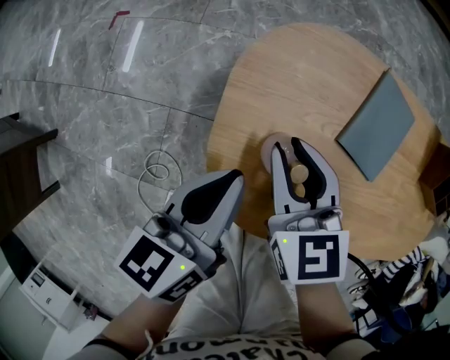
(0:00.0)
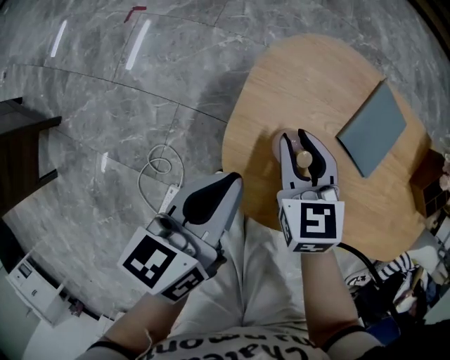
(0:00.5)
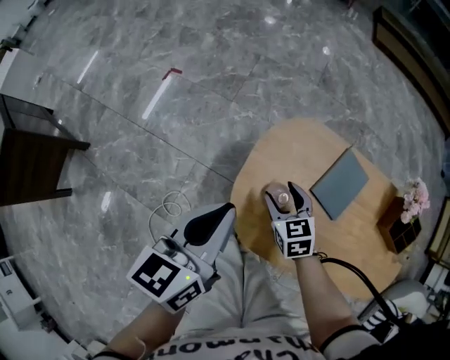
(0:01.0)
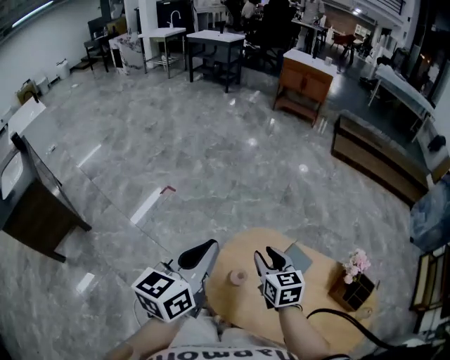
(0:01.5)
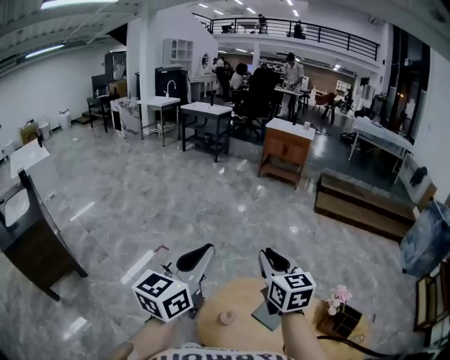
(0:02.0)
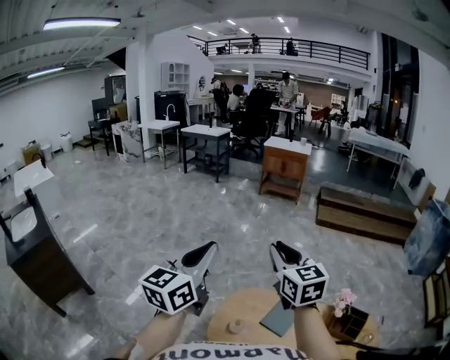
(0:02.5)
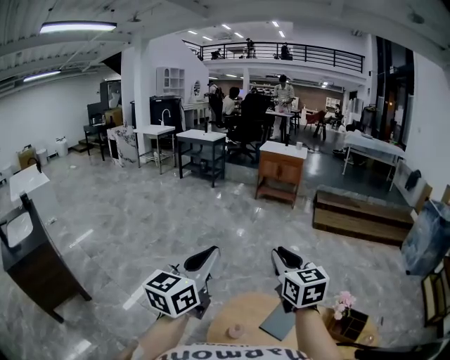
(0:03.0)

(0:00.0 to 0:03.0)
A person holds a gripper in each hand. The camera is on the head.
0:00.0 - 0:01.5: The left gripper moves upward, about 35 cm, and rotates roughly 30 degrees, while the right gripper is displaced upward by some 25 cm, and opens, then closes again.
0:01.5 - 0:03.0: The left gripper travels upward by approximately 20 cm, and changes its angle by about 20 degrees; the right gripper travels upward by about 30 cm, and turns by about 30 degrees.

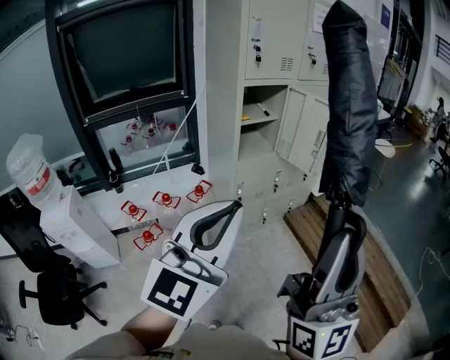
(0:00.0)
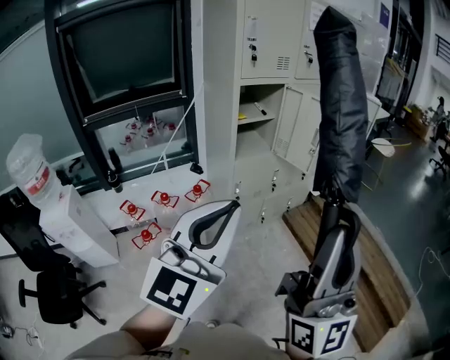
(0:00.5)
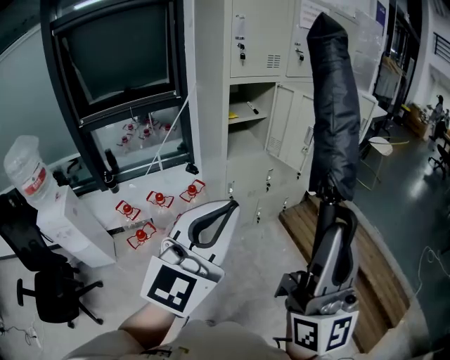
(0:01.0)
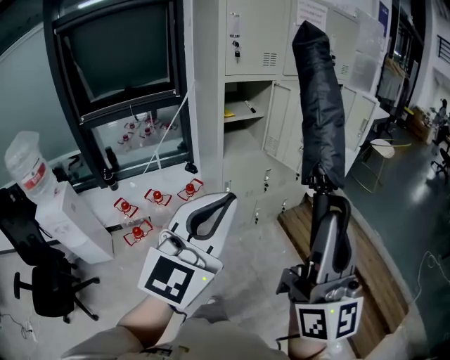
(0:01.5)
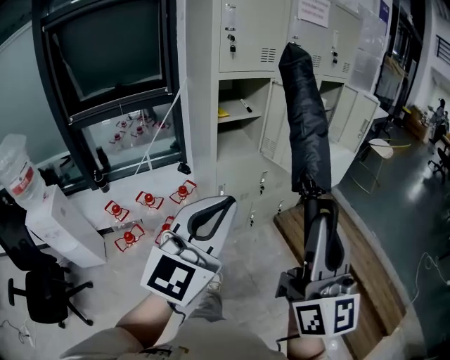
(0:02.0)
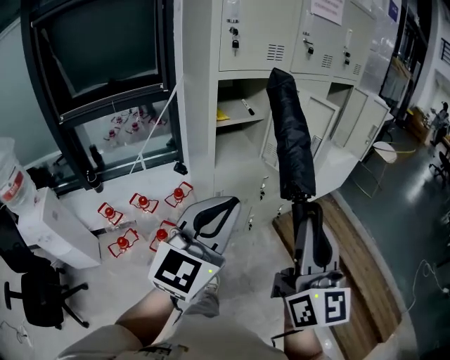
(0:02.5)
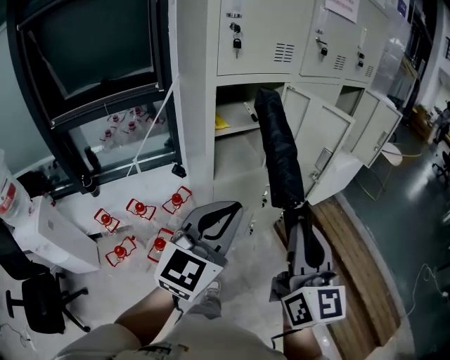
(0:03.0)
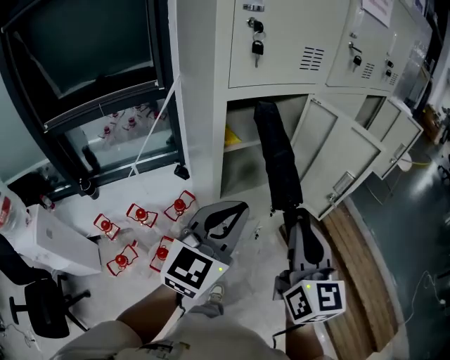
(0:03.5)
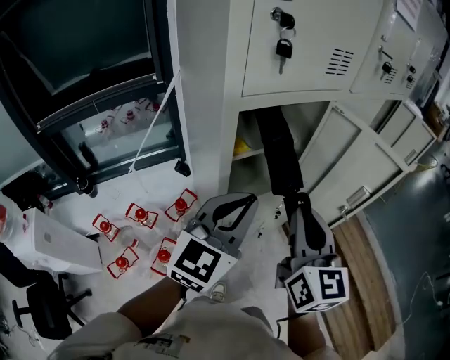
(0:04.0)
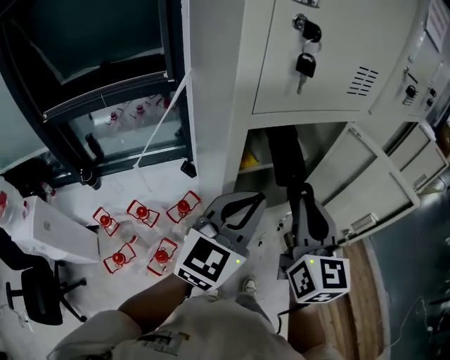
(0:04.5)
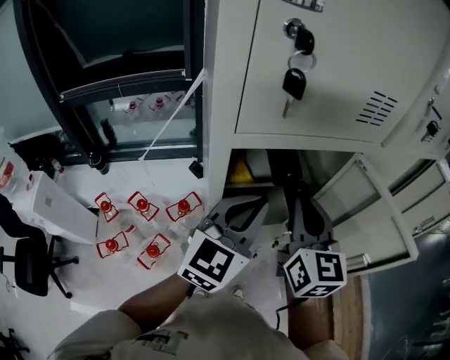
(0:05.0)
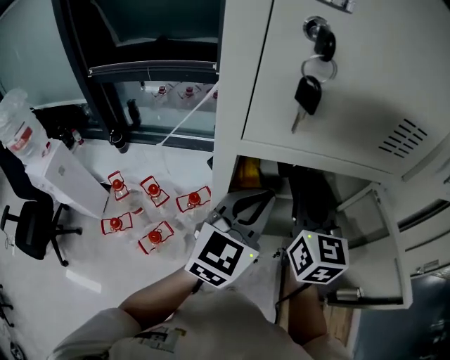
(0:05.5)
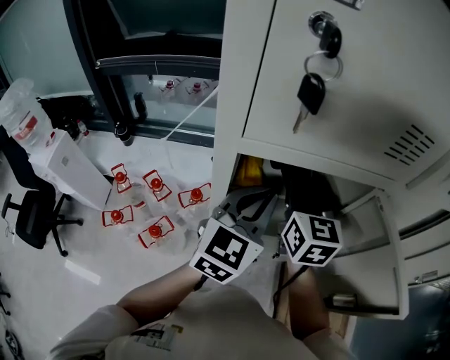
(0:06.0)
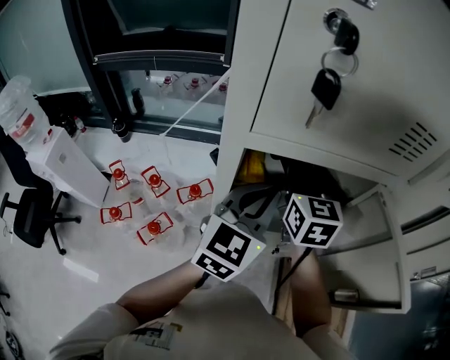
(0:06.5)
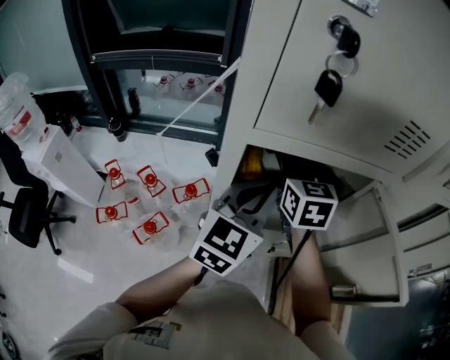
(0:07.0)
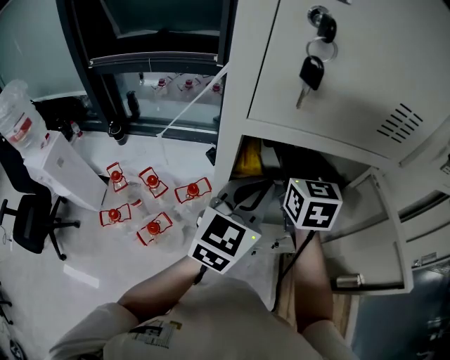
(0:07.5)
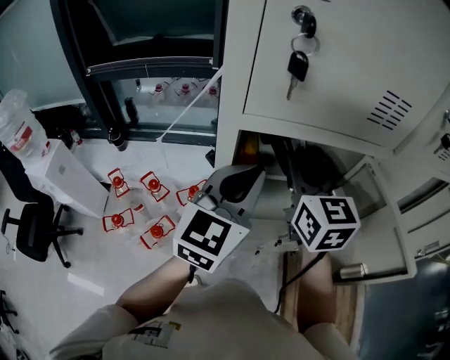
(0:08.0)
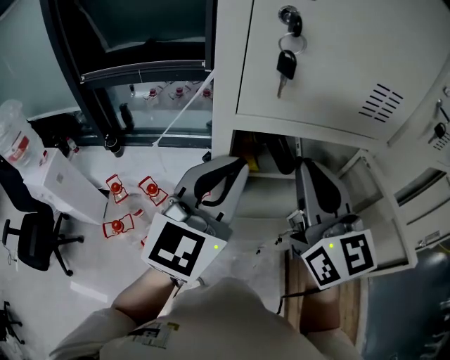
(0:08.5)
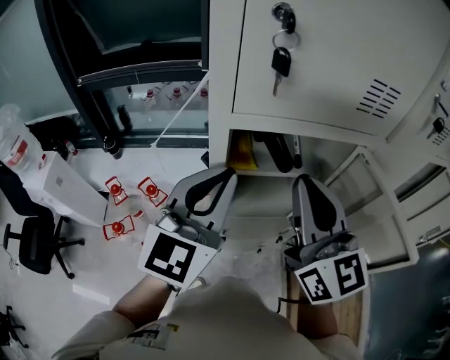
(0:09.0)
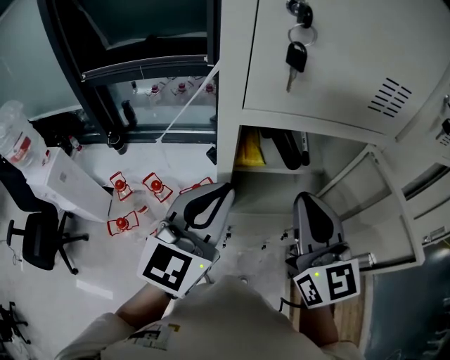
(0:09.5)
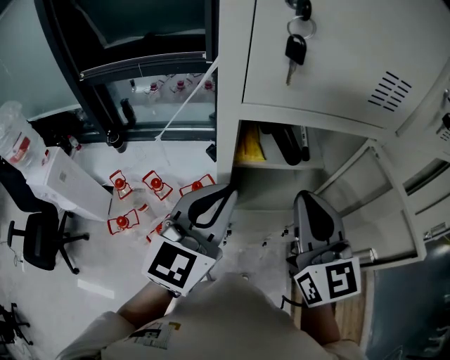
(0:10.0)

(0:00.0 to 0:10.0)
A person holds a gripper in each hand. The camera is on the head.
0:00.0 - 0:02.0: The right gripper is displaced forward, downward and to the right by roughly 15 cm, while the left gripper is displaced forward, to the right and downward by roughly 15 cm.
0:02.0 - 0:04.0: The pair of grippers is taken forward, about 40 cm. The right gripper swivels roughly 30 degrees.
0:04.0 - 0:06.0: The left gripper moves roughly 15 cm, and turns by about 30 degrees, while the right gripper changes place by roughly 25 cm, and turns by approximately 30 degrees.
0:06.0 - 0:08.0: The right gripper is displaced upward by roughly 5 cm; the left gripper moves approximately 5 cm.
0:08.0 - 0:10.0: The right gripper moves backward, some 10 cm. The left gripper shifts about 5 cm backward.

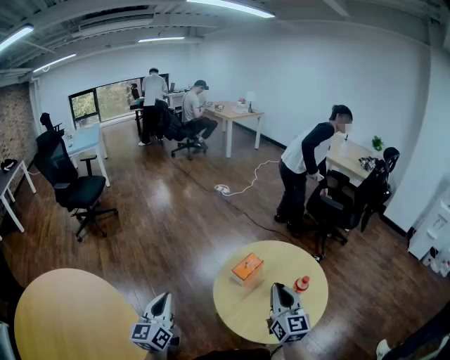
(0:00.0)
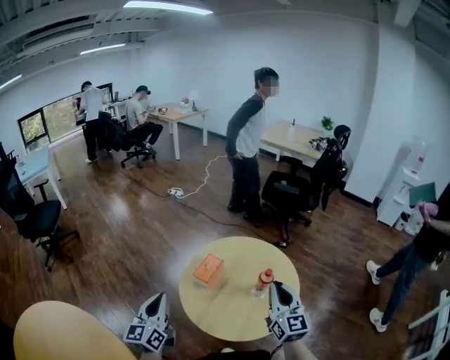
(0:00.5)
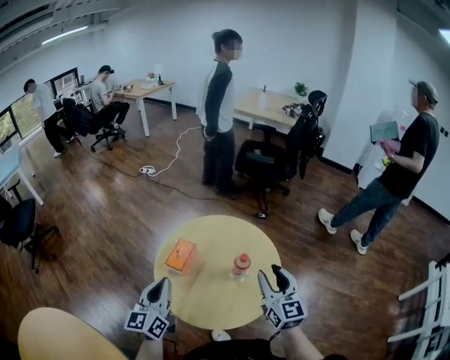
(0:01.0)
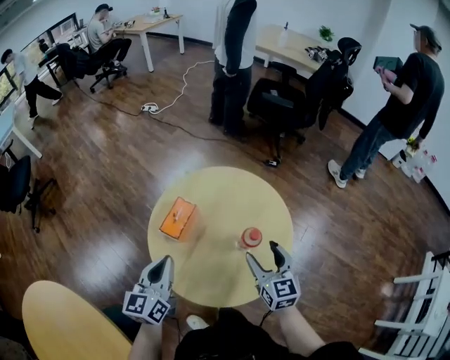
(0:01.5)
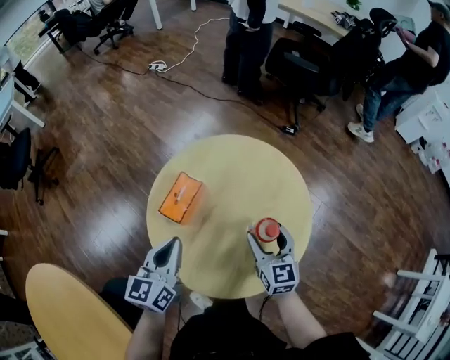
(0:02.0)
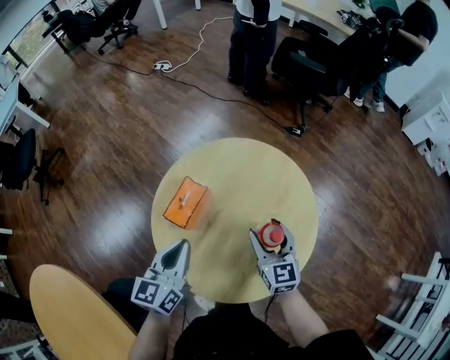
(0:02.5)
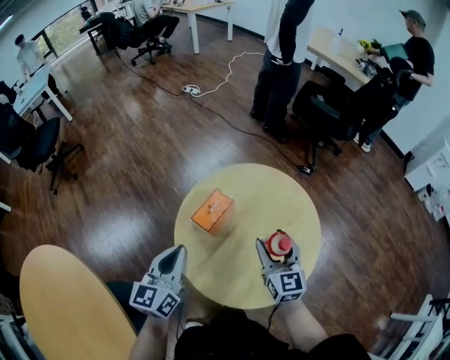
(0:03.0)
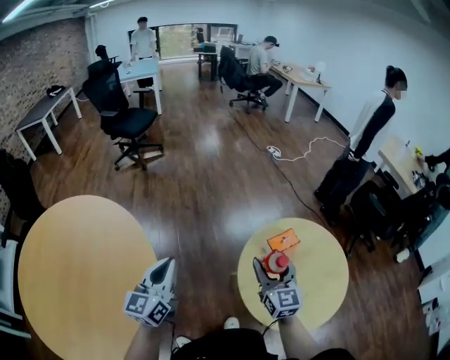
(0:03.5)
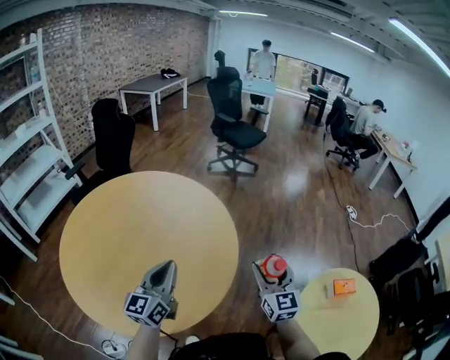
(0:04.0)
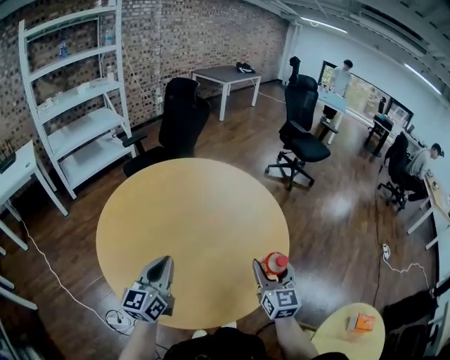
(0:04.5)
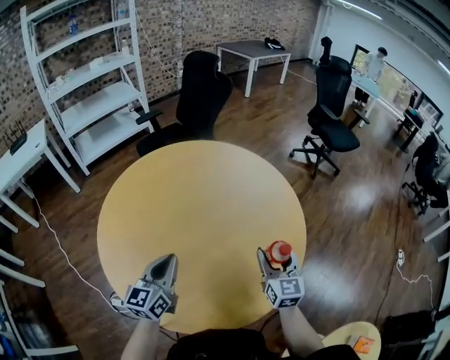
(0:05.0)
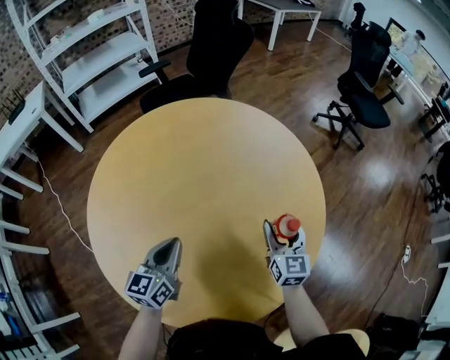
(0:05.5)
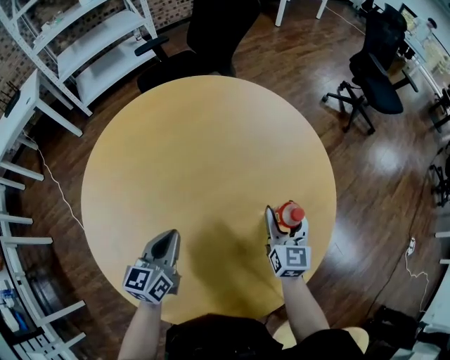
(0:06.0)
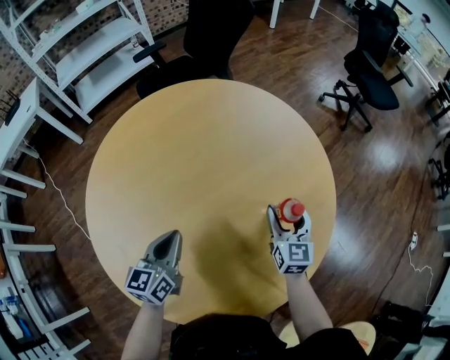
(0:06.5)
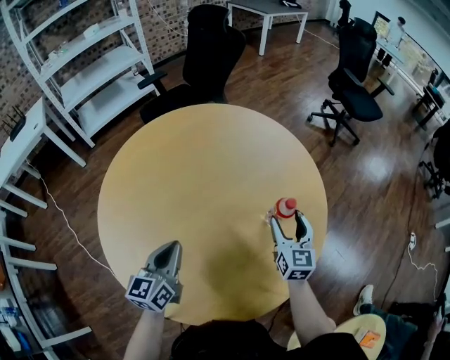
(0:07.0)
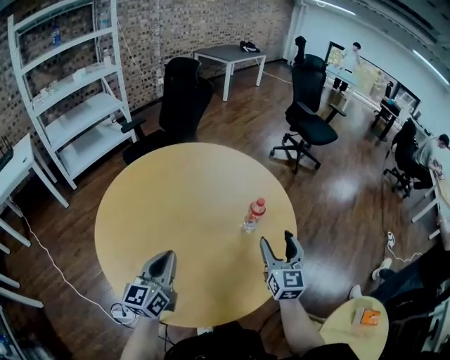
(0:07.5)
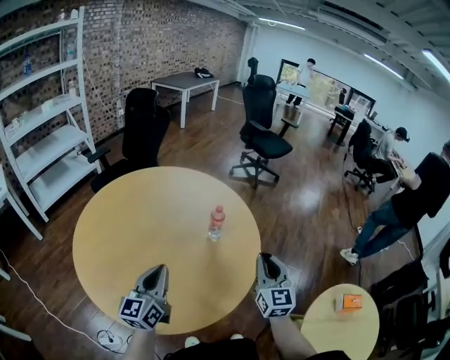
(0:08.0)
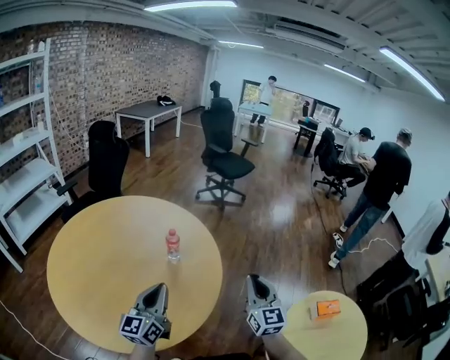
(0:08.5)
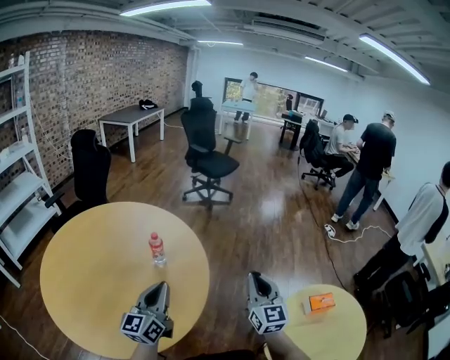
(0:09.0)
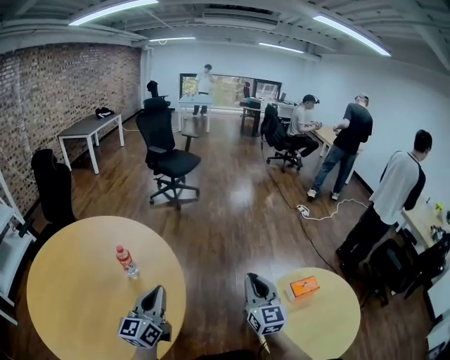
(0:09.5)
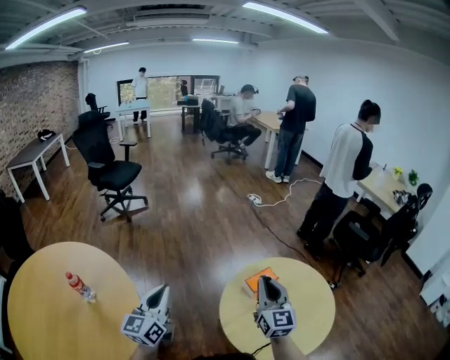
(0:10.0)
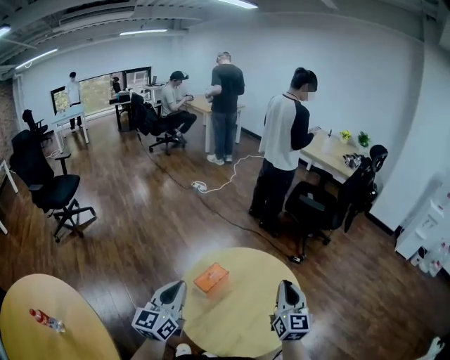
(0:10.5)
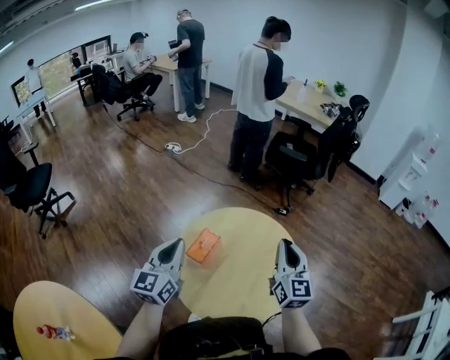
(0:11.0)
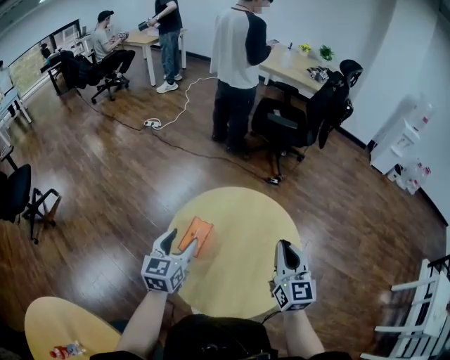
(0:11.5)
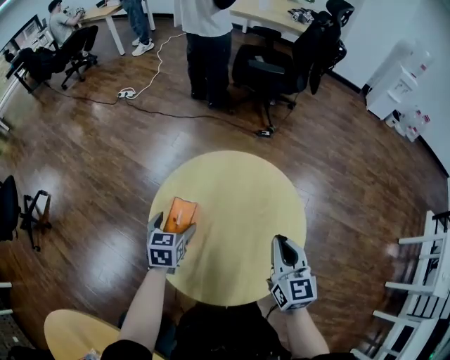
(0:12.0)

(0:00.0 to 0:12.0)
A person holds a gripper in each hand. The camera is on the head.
0:00.0 - 0:02.0: The left gripper heads to the right, forward and downward, covering some 30 cm, and changes its angle by approximately 30 degrees; the right gripper is displaced downward and to the right by approximately 25 cm, turns by roughly 30 degrees, and opens up.
0:02.0 - 0:04.0: The two grippers travel together, some 60 cm. The left gripper rotates approximately 70 degrees. The right gripper changes its angle by roughly 70 degrees.
0:04.0 - 0:06.0: The right gripper moves roughly 40 cm, and swivels some 30 degrees. Meanwhile the left gripper ends up some 25 cm from where it was, and changes its angle by some 40 degrees.
0:06.0 - 0:08.0: The left gripper travels upward and backward by roughly 20 cm, and swivels approximately 30 degrees; the right gripper is displaced backward and upward by about 30 cm, changes its angle by about 30 degrees, and closes up.
0:08.0 - 0:10.0: The pair of grippers is taken about 50 cm. The left gripper changes its angle by about 50 degrees; the right gripper changes its angle by approximately 50 degrees.
0:10.0 - 0:12.0: The left gripper ends up roughly 50 cm from where it was, tilts its fingers approximately 50 degrees downward, and opens; the right gripper changes place by some 25 cm, and turns by approximately 50 degrees.

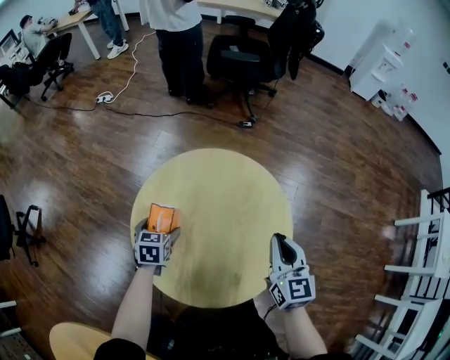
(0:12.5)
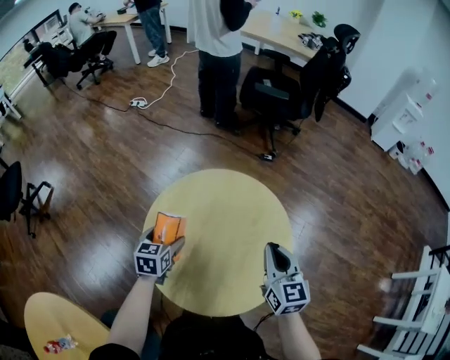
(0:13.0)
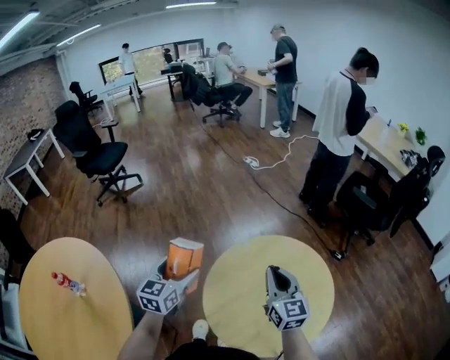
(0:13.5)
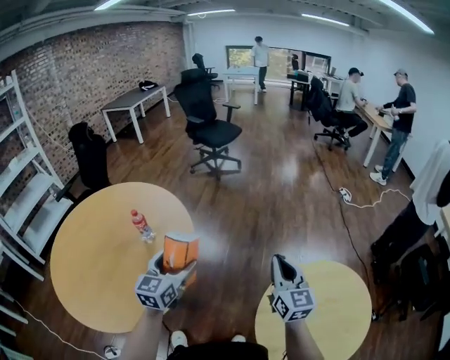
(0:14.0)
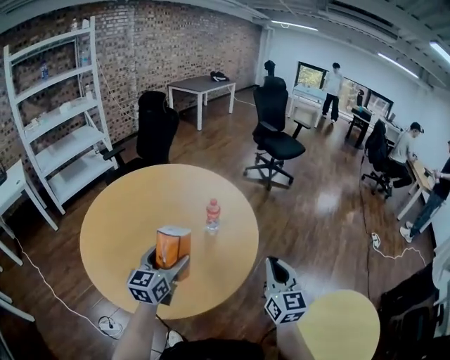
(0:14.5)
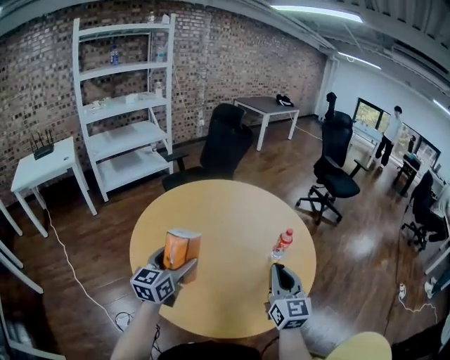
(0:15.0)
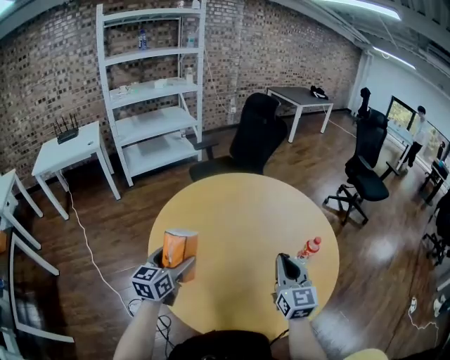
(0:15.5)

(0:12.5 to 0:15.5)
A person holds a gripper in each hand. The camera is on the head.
0:12.5 - 0:14.0: The right gripper changes place by some 50 cm, and rotates some 80 degrees; the left gripper changes place by about 60 cm, and points its fingers roughly 40 degrees further upward.
0:14.0 - 0:15.5: The pair of grippers is taken roughly 60 cm. The left gripper rotates some 40 degrees, while the right gripper turns by roughly 40 degrees.
